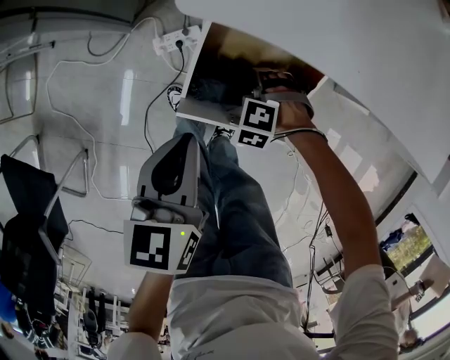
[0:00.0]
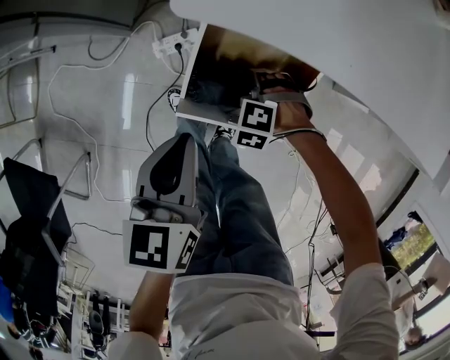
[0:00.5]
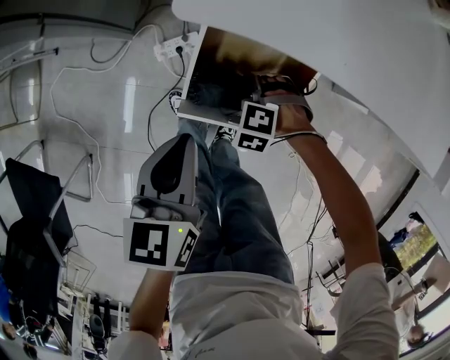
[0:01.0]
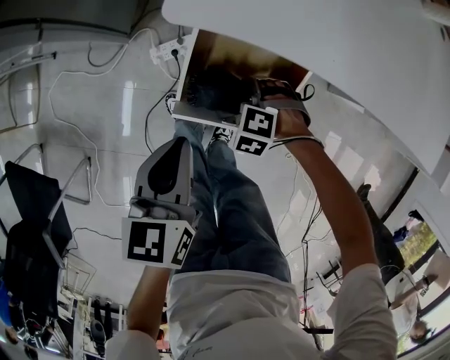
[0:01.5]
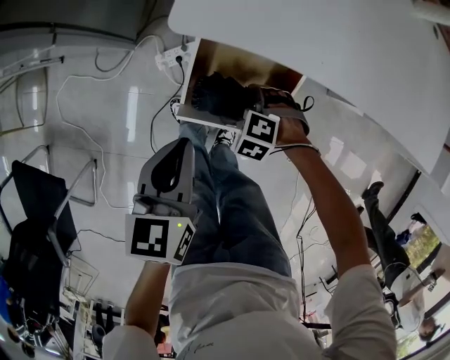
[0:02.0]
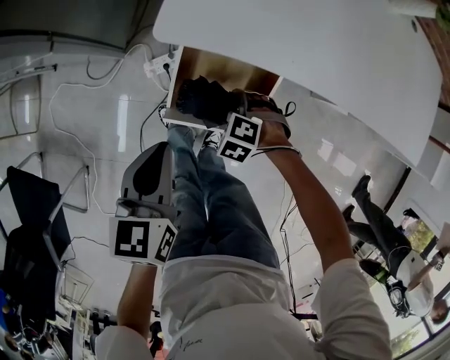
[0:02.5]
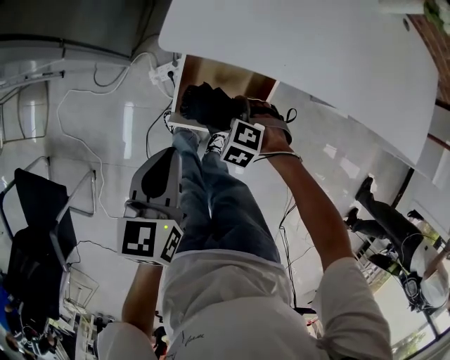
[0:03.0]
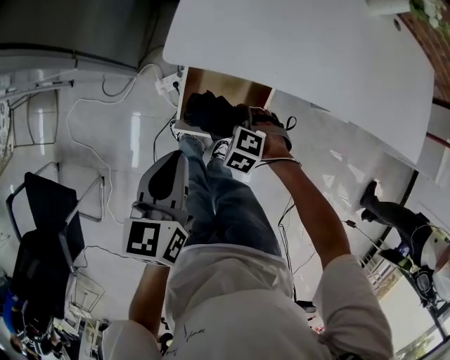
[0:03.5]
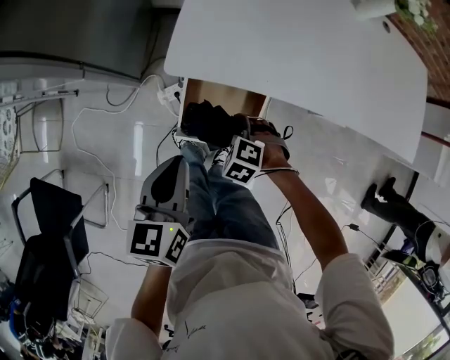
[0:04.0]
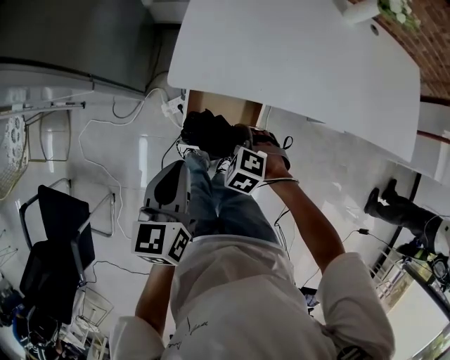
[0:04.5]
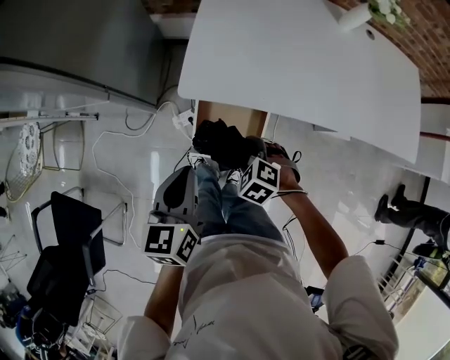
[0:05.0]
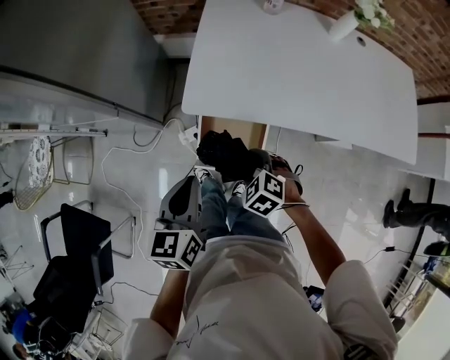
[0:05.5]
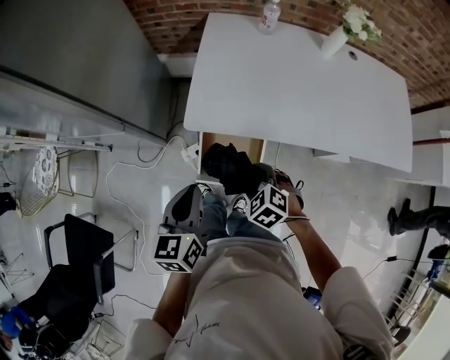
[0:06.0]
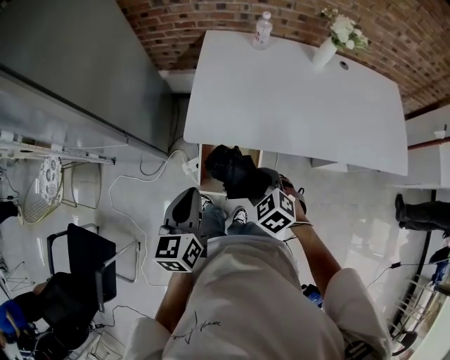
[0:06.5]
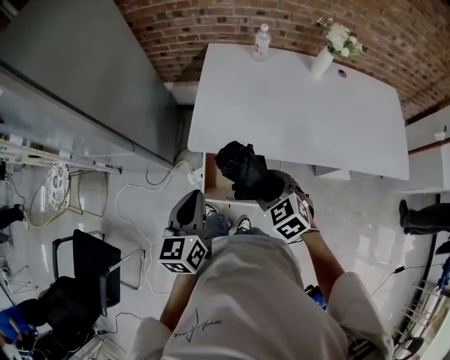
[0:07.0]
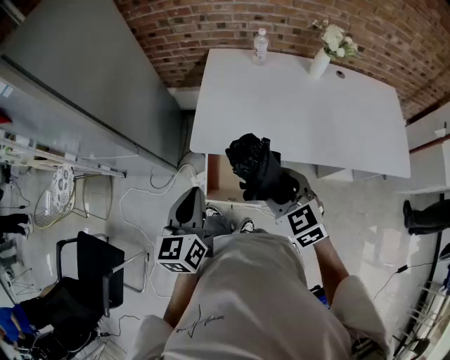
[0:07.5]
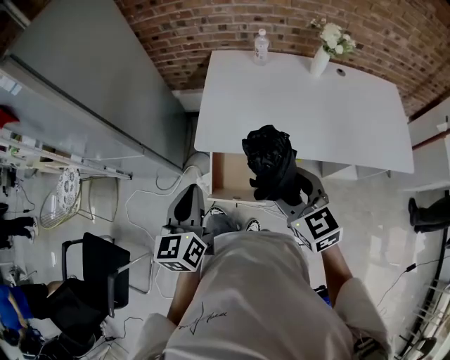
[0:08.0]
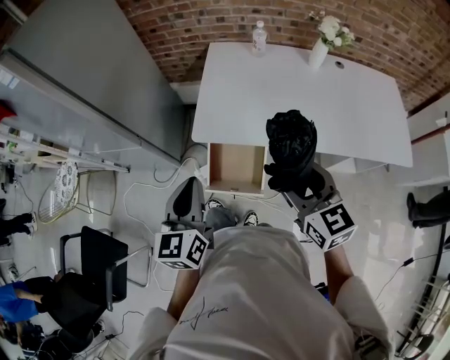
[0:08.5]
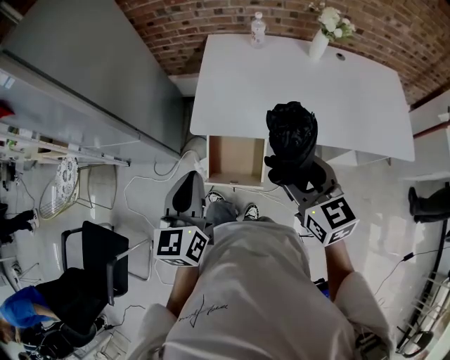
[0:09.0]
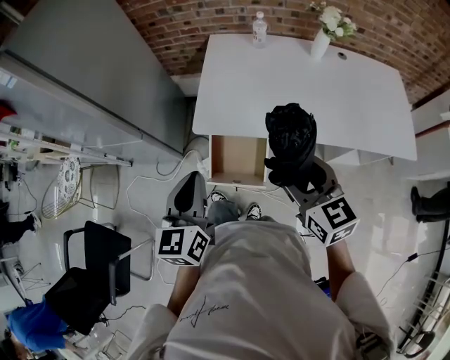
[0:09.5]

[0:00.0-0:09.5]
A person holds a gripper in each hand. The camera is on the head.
0:00.0 to 0:02.0: The right gripper moves upward, about 5 cm.
0:02.0 to 0:04.0: The two grippers go roughly 10 cm upward.
0:04.0 to 0:05.5: The right gripper shifts about 15 cm upward. The left gripper is displaced upward by about 5 cm.
0:05.5 to 0:07.5: The left gripper shifts about 10 cm upward. Meanwhile the right gripper shifts about 20 cm upward, and angles its fingers upward, by roughly 30 degrees.
0:07.5 to 0:09.5: The right gripper moves upward, roughly 5 cm, and turns by approximately 20 degrees.

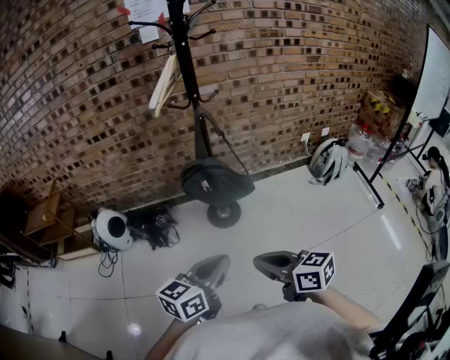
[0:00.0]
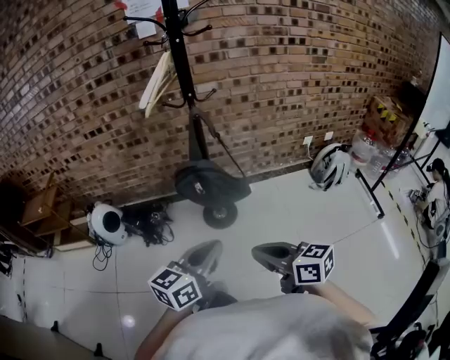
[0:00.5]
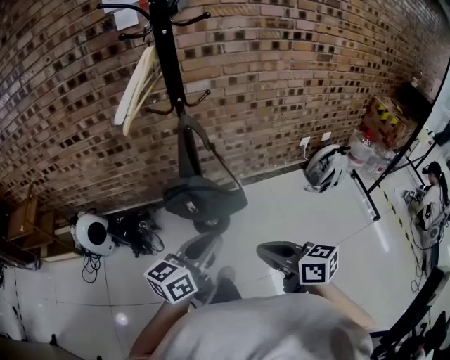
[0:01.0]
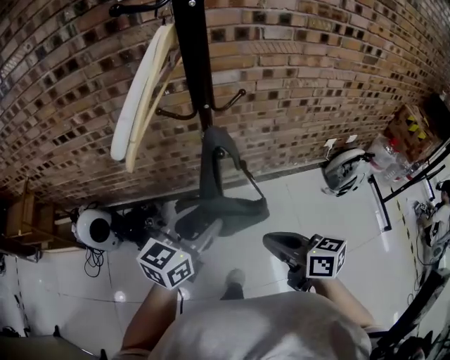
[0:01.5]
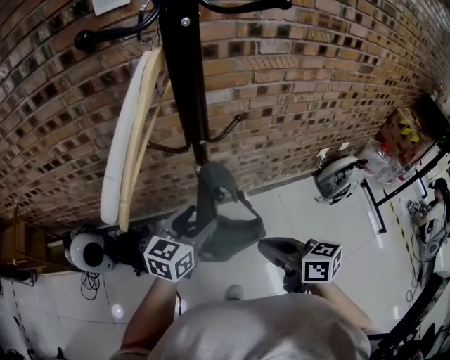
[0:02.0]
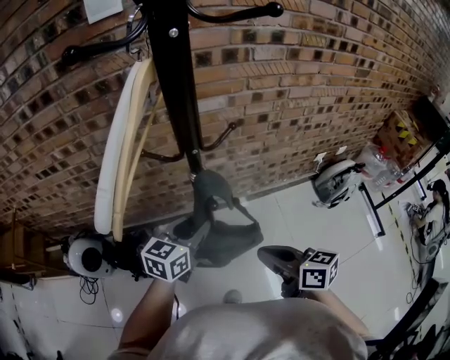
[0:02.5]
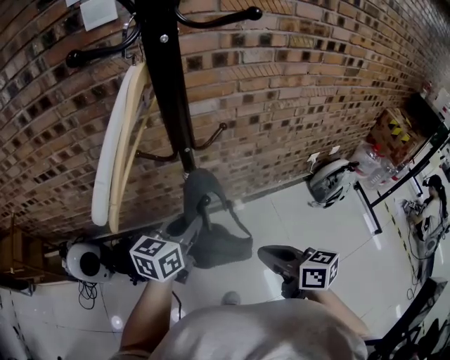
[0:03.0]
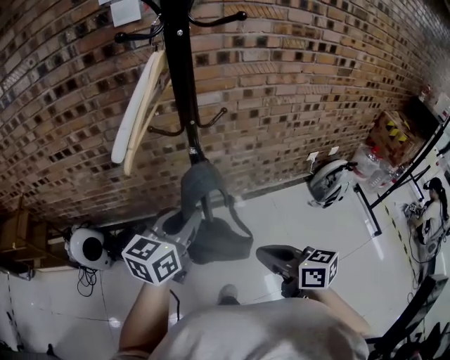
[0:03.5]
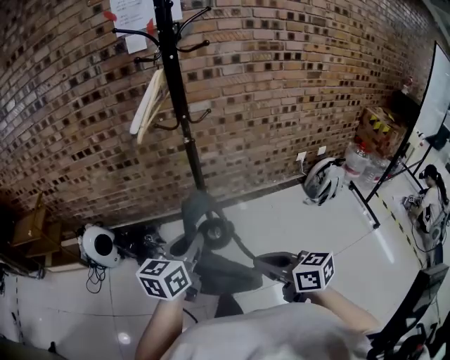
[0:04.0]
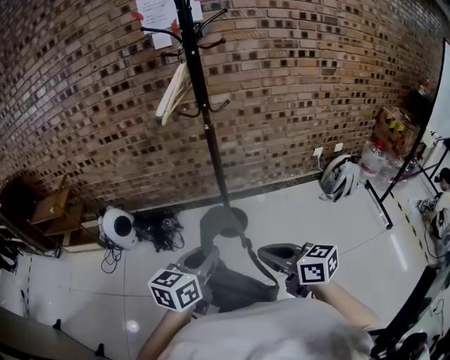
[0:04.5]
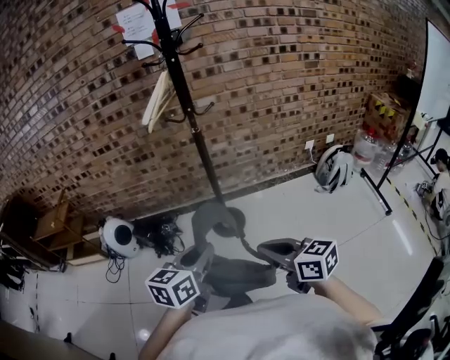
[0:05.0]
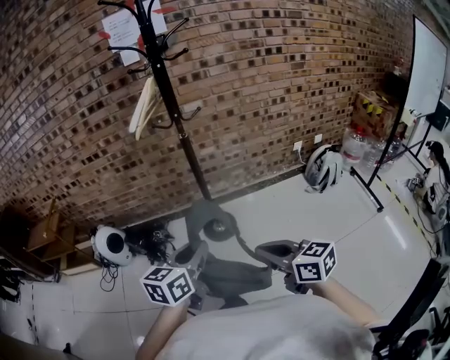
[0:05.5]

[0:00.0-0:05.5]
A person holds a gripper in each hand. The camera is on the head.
0:00.0 to 0:02.0: The pair of grippers is taken forward, some 50 cm. The left gripper opens.
0:02.0 to 0:03.5: The right gripper heads backward, covering about 10 cm; the left gripper goes roughly 15 cm backward and upward, and closes its fingers.
0:03.5 to 0:05.5: Both grippers travel together backward, roughly 30 cm.

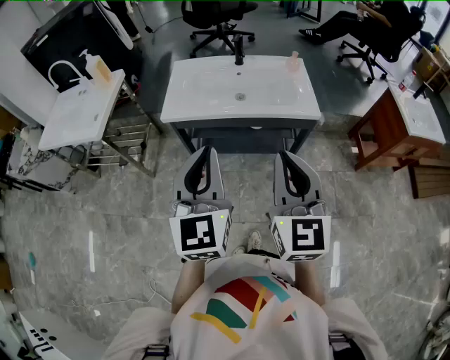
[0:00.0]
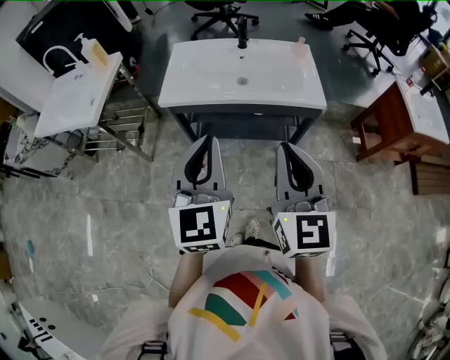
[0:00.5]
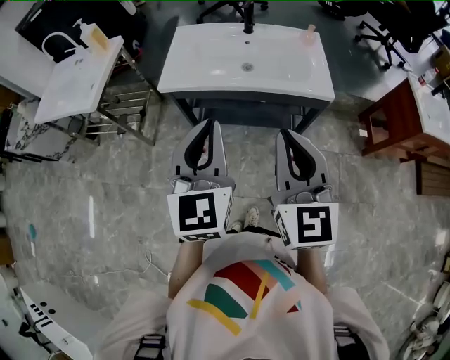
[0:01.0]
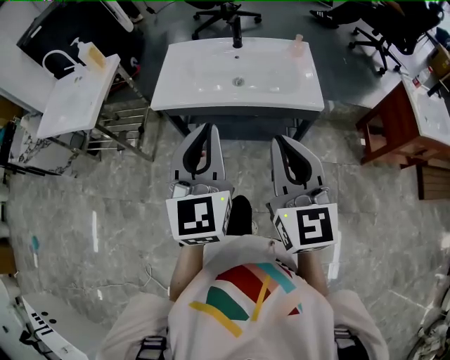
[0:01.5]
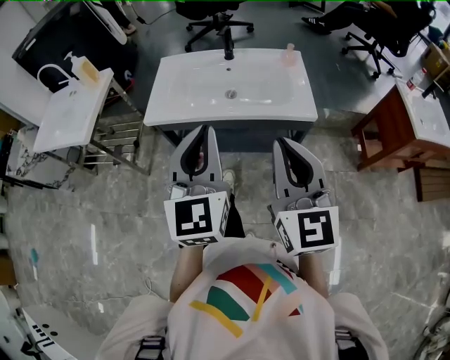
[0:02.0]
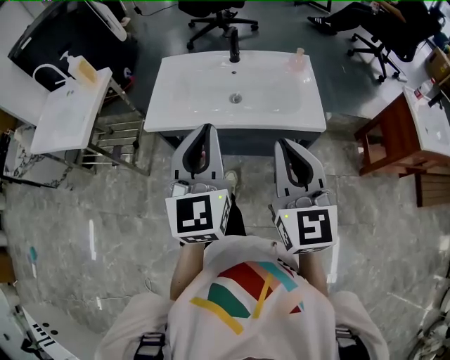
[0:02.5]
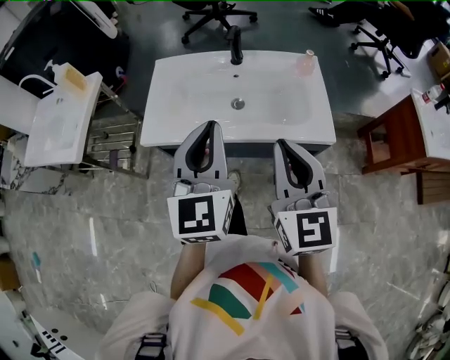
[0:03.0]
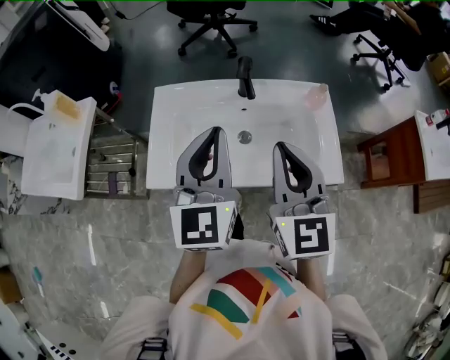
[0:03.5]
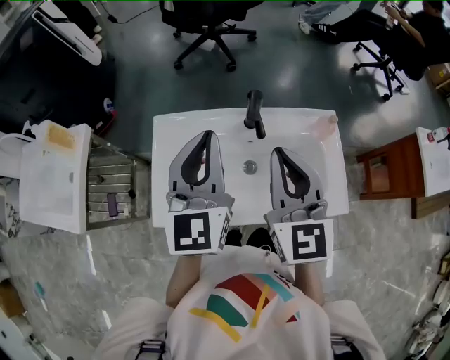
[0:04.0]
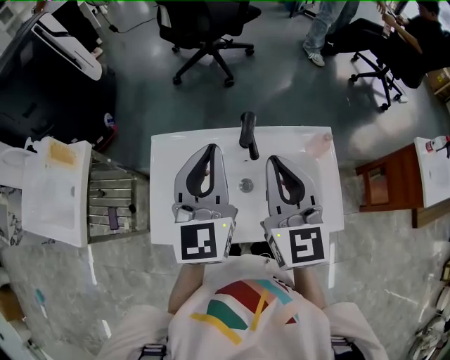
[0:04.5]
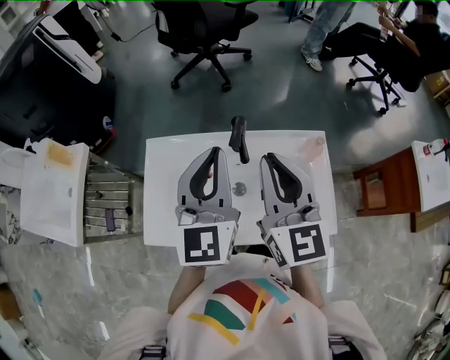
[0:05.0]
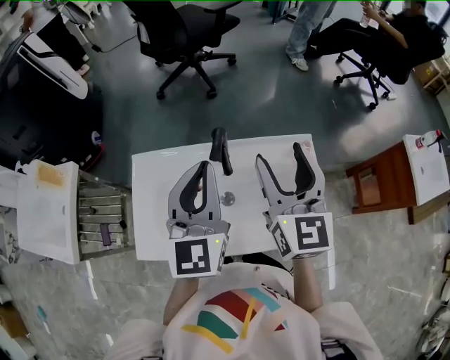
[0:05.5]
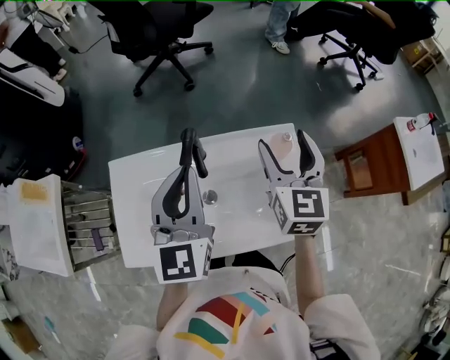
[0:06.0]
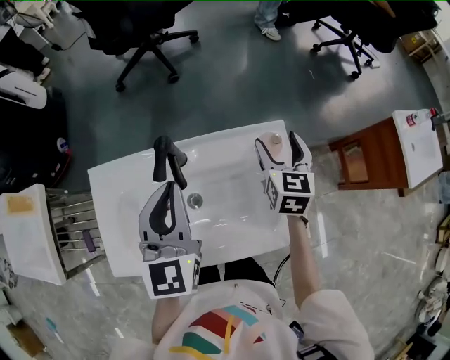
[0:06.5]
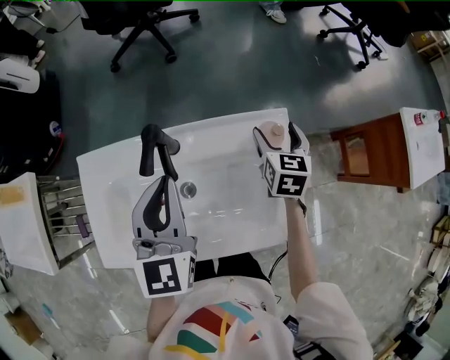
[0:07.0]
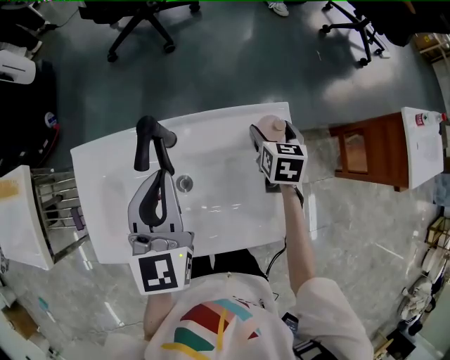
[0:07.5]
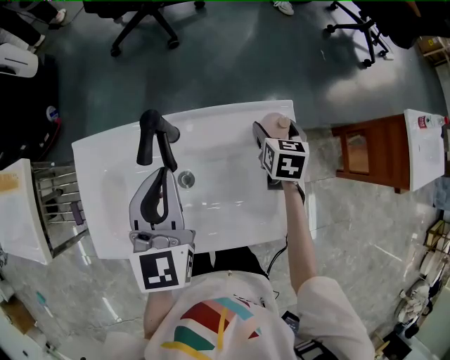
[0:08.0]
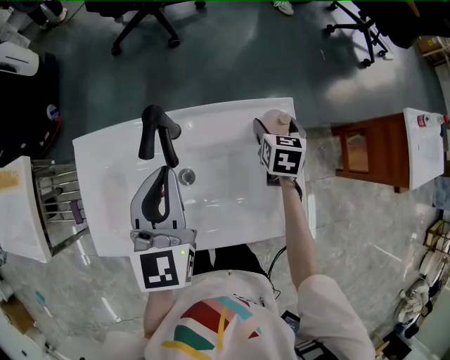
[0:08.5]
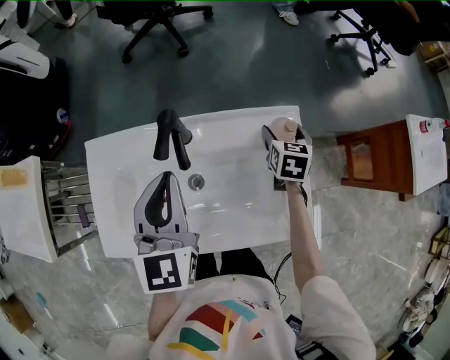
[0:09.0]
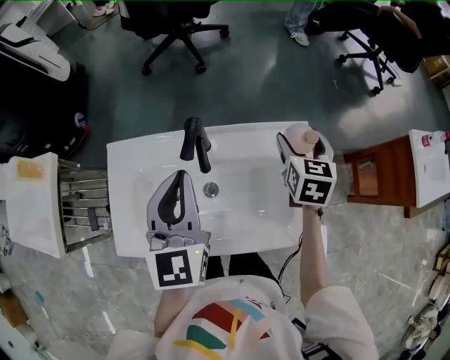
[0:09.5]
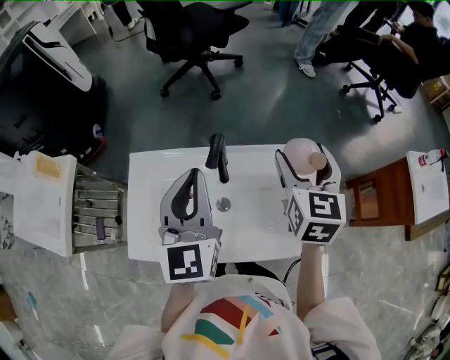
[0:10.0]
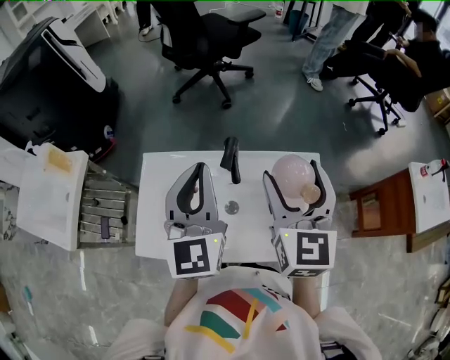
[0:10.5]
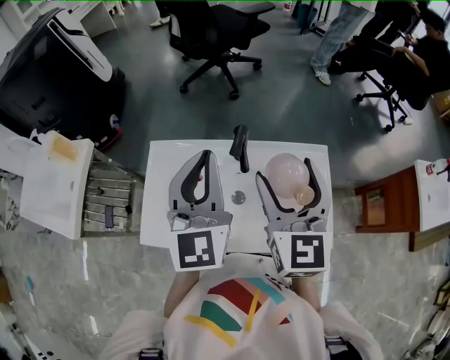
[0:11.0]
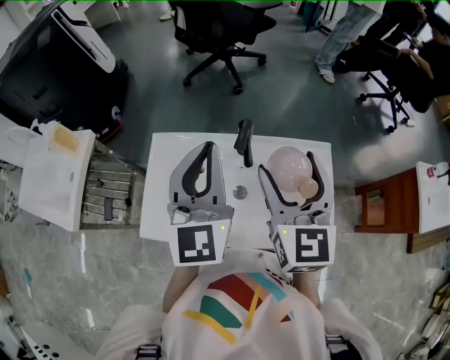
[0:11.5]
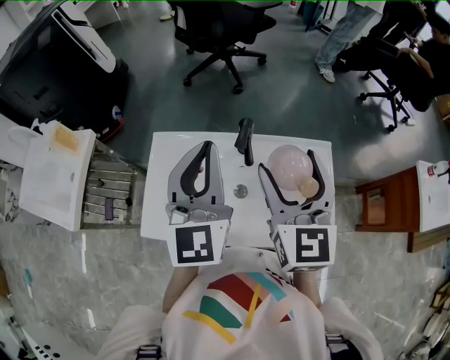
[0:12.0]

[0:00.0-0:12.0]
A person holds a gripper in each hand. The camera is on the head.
0:00.0 to 0:02.0: The two grippers go approximately 10 cm forward and to the right.
0:02.0 to 0:04.0: Both grippers are carried forward, some 40 cm.
0:04.0 to 0:06.0: The left gripper is displaced to the right by about 10 cm. Meanwhile the right gripper is displaced to the right and forward by about 20 cm, and opens its fingers.
0:06.0 to 0:08.0: The right gripper goes some 25 cm downward, and tilts its fingers approximately 30 degrees downward; the left gripper heads downward, covering roughly 10 cm.
0:08.0 to 0:10.0: The right gripper heads upward, covering approximately 25 cm, and turns by some 30 degrees; the left gripper shifts approximately 10 cm upward and to the left.
0:10.0 to 0:12.0: The right gripper is displaced to the left, backward and upward by roughly 15 cm, while the left gripper is displaced upward by approximately 5 cm.
